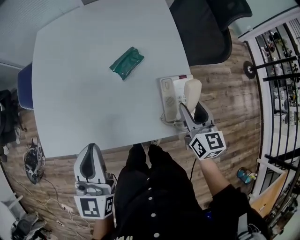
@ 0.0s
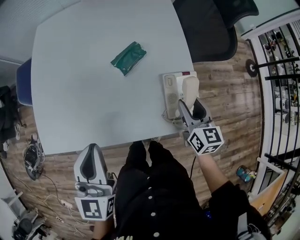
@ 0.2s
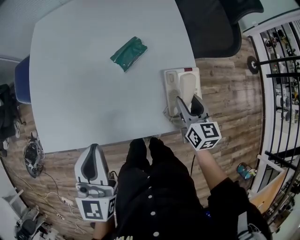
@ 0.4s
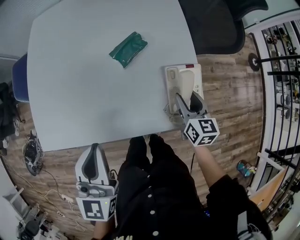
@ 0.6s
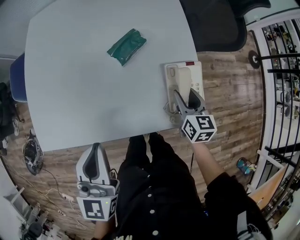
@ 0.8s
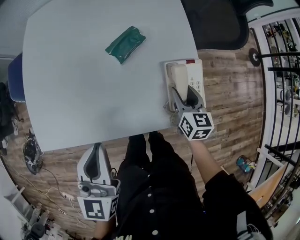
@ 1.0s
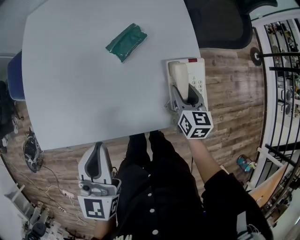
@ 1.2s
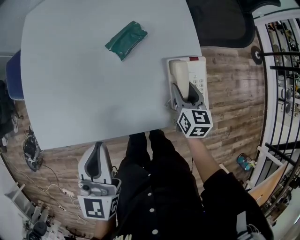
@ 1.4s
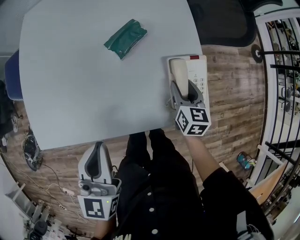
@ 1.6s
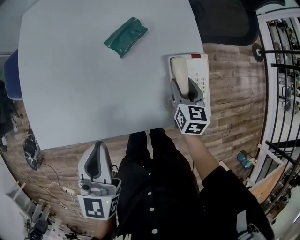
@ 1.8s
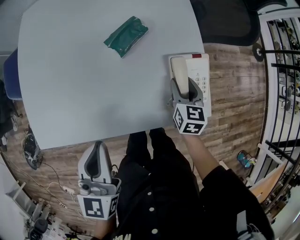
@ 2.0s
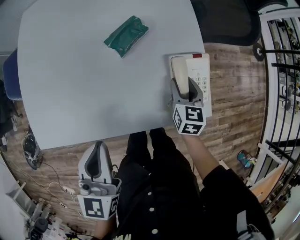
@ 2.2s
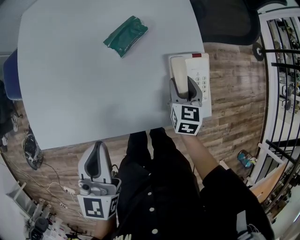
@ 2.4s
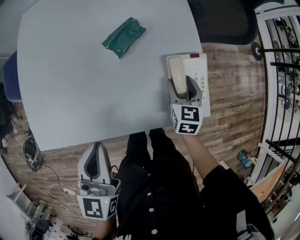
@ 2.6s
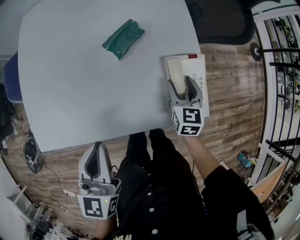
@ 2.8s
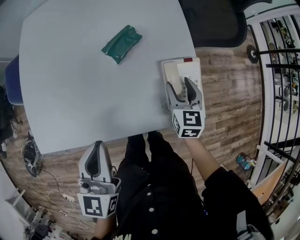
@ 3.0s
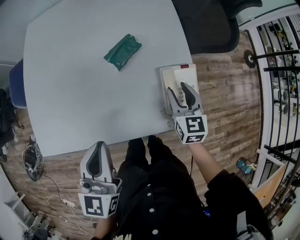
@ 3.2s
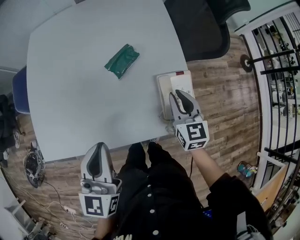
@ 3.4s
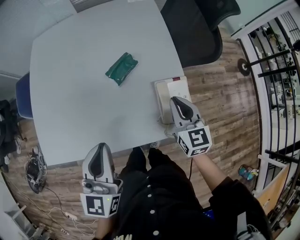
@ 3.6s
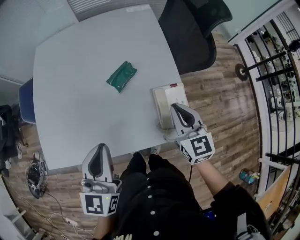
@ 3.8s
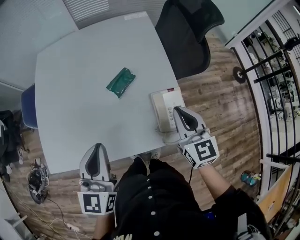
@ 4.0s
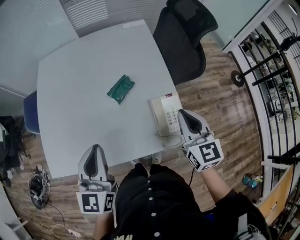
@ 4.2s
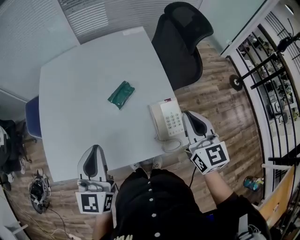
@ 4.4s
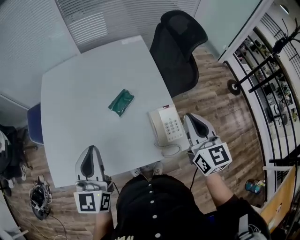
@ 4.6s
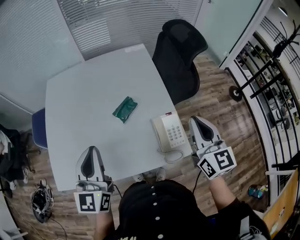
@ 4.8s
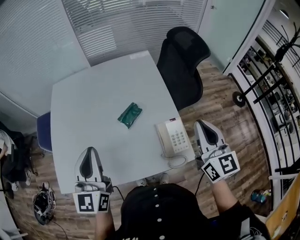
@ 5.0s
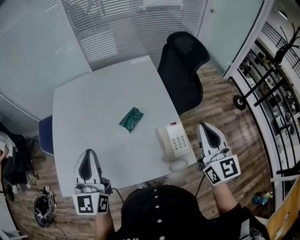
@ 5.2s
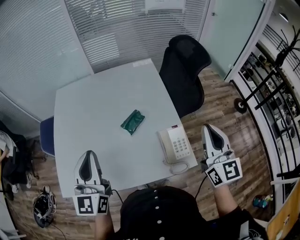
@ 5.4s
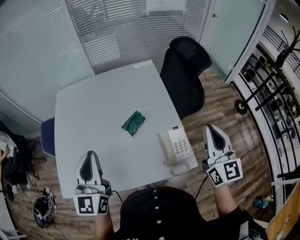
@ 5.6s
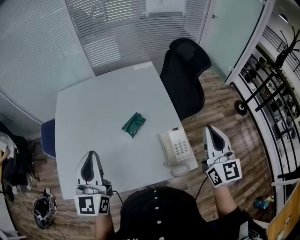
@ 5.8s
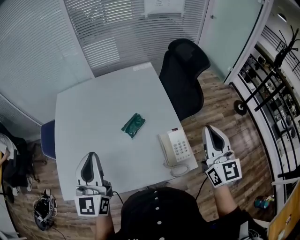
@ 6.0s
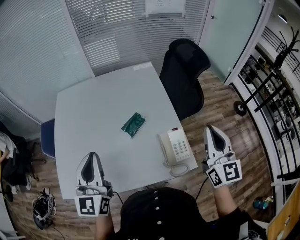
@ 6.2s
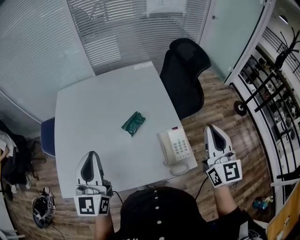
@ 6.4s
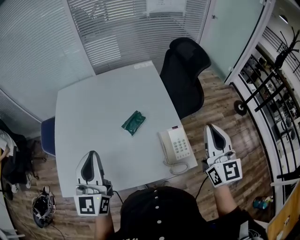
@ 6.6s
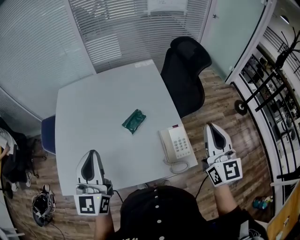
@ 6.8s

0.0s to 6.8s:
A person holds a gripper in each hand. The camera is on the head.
0.0s to 1.4s: The left gripper shifts approximately 5 cm downward. Meanwhile the right gripper travels downward by about 15 cm.
1.4s to 2.8s: The grippers move only a little.
2.8s to 4.0s: The left gripper heads upward, covering about 10 cm, while the right gripper shifts about 20 cm upward, turns by some 20 degrees, and closes its fingers.
4.0s to 5.4s: The right gripper moves upward and to the right, roughly 15 cm, and rotates roughly 20 degrees. Meanwhile the left gripper heads upward and to the left, covering roughly 10 cm.
5.4s to 6.8s: Both grippers stay about where they are.

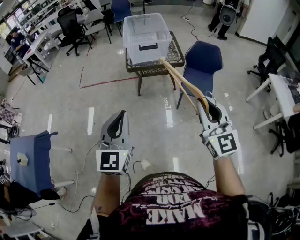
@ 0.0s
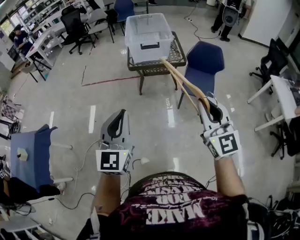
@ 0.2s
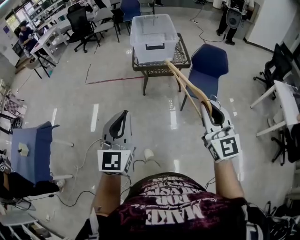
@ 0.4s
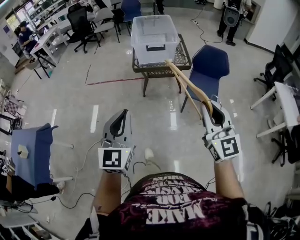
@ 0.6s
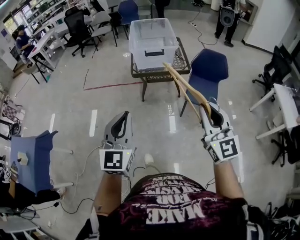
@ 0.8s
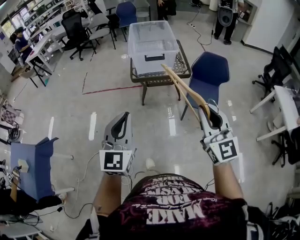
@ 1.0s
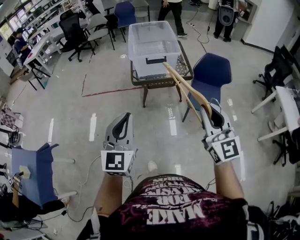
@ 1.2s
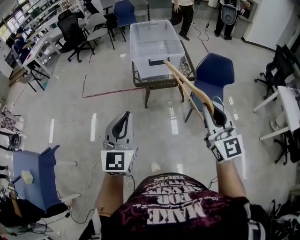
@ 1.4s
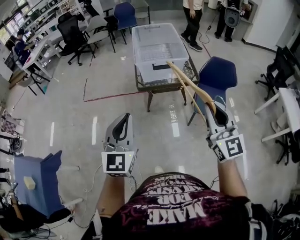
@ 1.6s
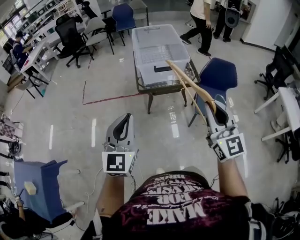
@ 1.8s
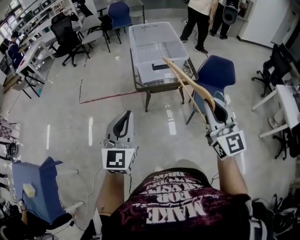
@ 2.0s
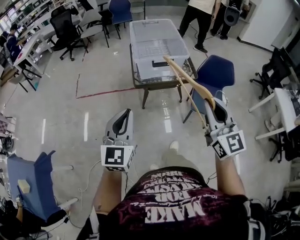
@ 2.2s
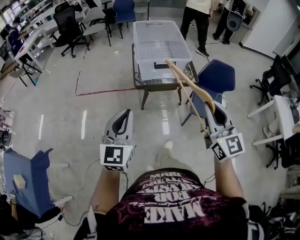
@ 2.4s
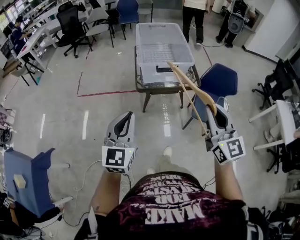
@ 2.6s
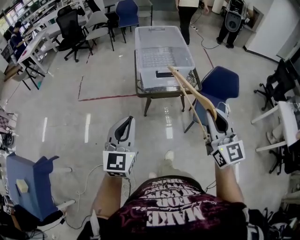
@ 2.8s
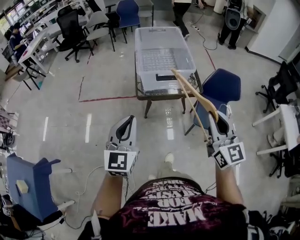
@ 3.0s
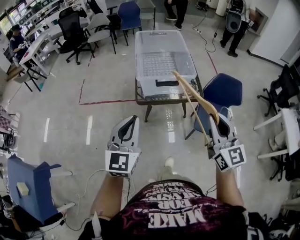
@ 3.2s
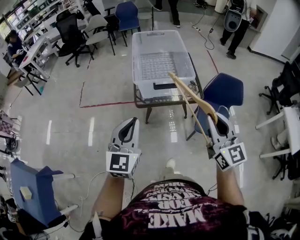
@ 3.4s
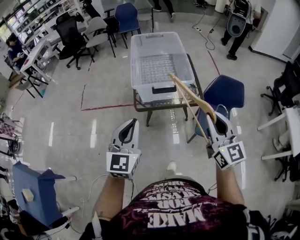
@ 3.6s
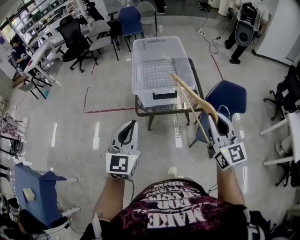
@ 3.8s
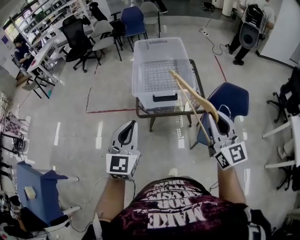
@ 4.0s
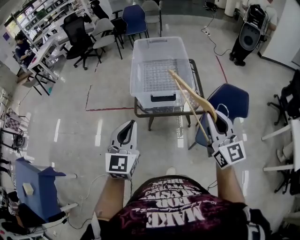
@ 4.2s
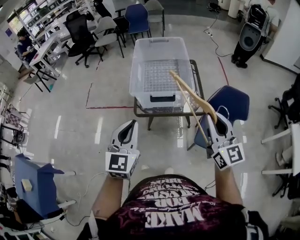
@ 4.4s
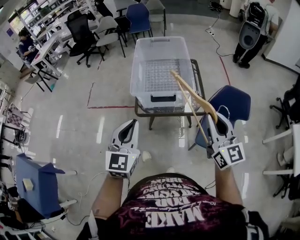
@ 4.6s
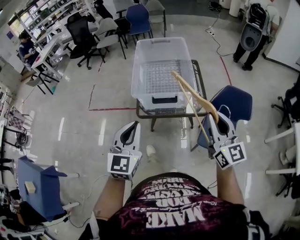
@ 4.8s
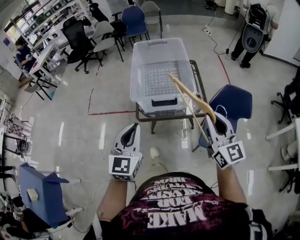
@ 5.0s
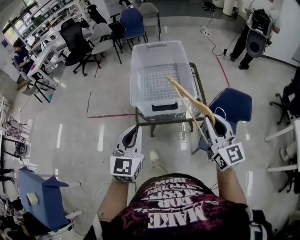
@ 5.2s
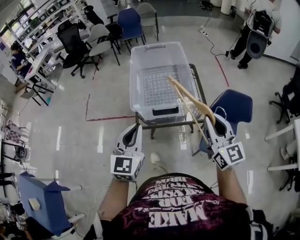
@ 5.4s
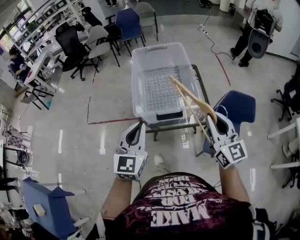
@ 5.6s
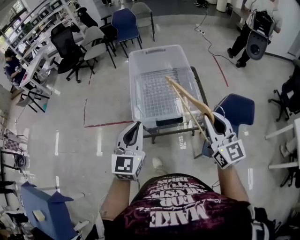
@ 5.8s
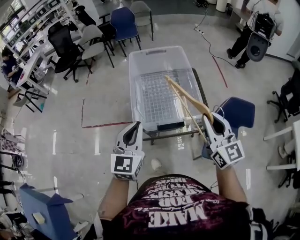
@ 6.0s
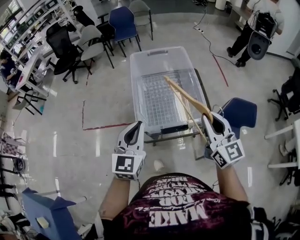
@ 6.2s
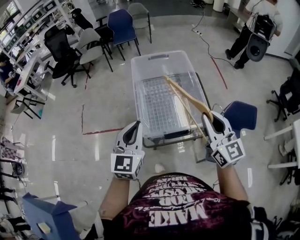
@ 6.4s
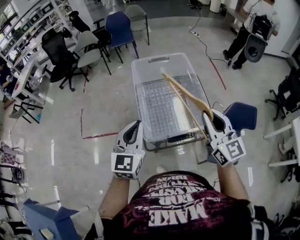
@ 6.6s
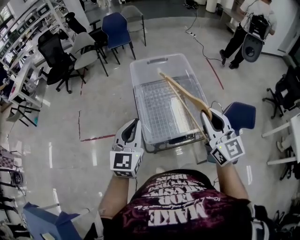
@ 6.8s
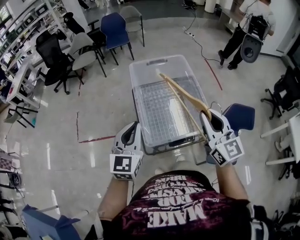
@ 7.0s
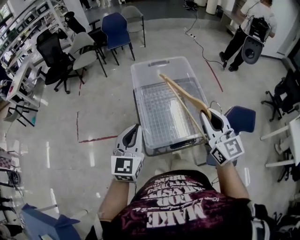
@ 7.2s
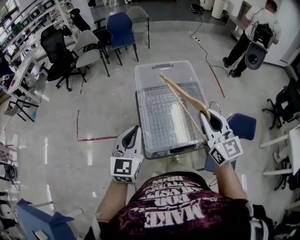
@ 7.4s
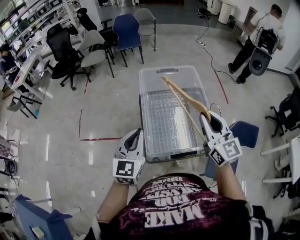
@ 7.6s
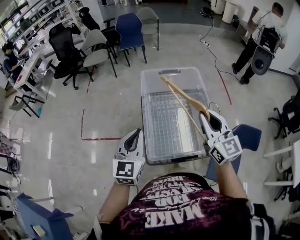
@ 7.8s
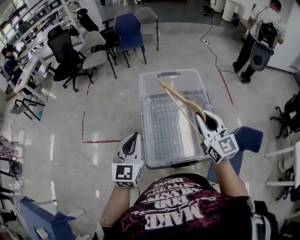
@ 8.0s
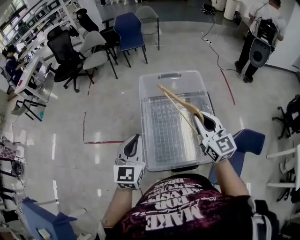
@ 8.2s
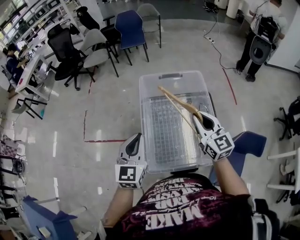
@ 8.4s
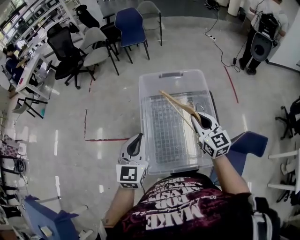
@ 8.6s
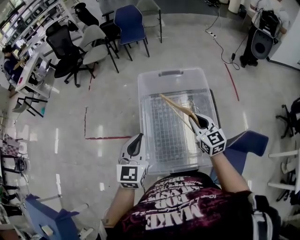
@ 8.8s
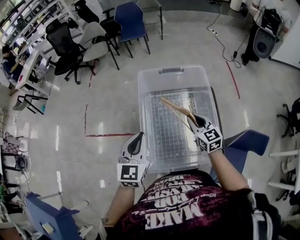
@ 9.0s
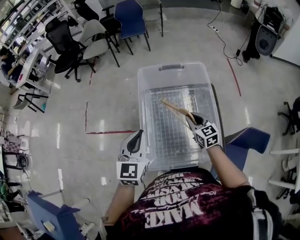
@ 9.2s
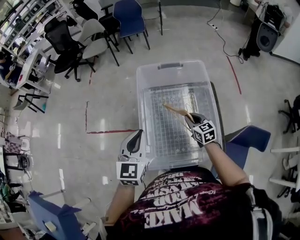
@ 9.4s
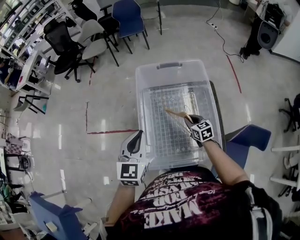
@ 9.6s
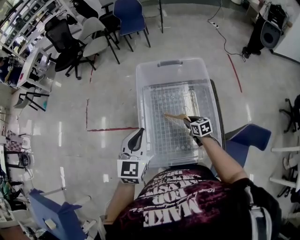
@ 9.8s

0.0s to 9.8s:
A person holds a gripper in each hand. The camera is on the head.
0.0s to 1.4s: The grippers both shift forward by some 15 cm.
1.4s to 2.8s: Both grippers move forward, about 10 cm.
2.8s to 4.2s: Both grippers travel together forward and to the right, about 20 cm.
4.2s to 5.6s: The grippers both shift forward by some 10 cm.
5.6s to 7.0s: The grippers both shift forward and to the left by about 20 cm.
7.0s to 8.4s: The left gripper heads forward, covering approximately 10 cm, while the right gripper moves forward, about 20 cm.
8.4s to 9.8s: The right gripper is displaced downward by approximately 30 cm, and angles its fingers downward, by roughly 40 degrees.

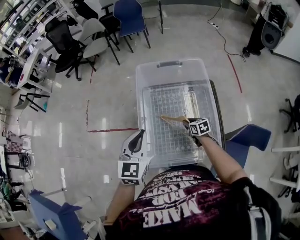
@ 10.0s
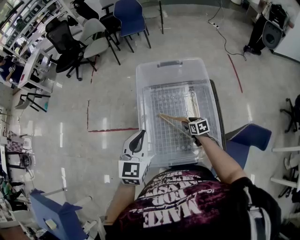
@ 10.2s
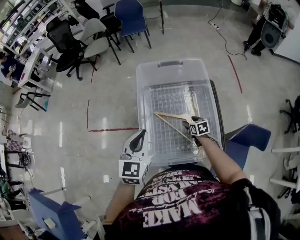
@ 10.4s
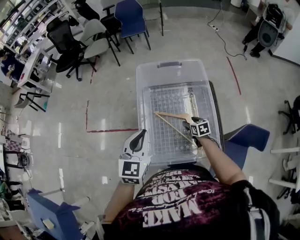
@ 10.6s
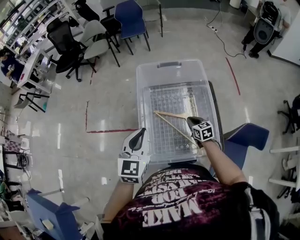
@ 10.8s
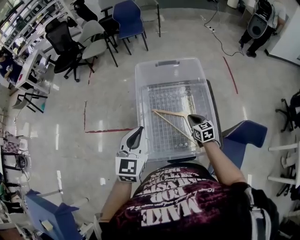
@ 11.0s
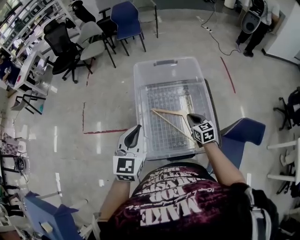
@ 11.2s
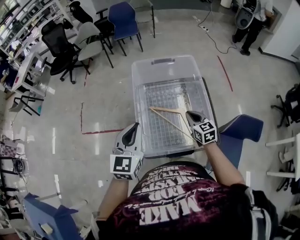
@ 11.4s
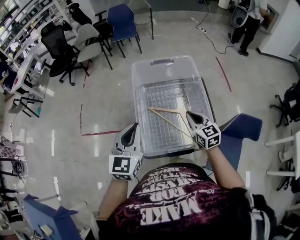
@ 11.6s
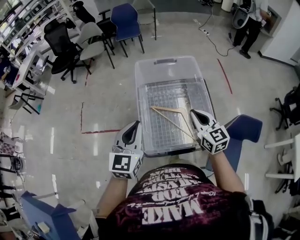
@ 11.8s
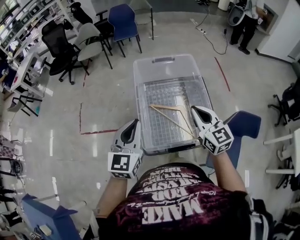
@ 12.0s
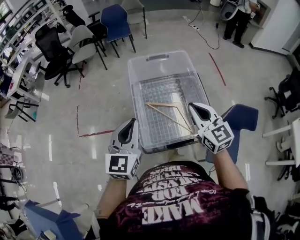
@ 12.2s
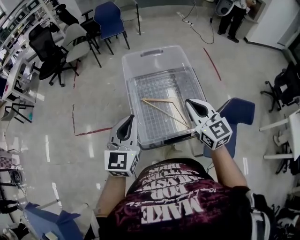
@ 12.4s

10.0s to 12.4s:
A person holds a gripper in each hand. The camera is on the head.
10.0s to 11.2s: The right gripper is displaced upward by some 10 cm, turns by some 20 degrees, and opens, then closes again.
11.2s to 12.4s: The right gripper goes approximately 25 cm upward and backward, and turns by approximately 20 degrees, while the left gripper moves about 5 cm.

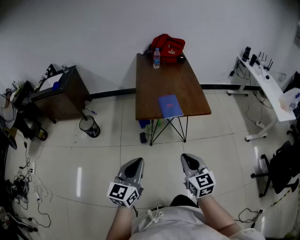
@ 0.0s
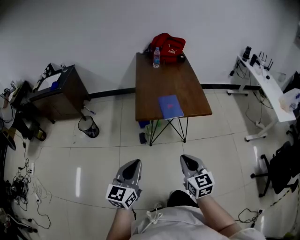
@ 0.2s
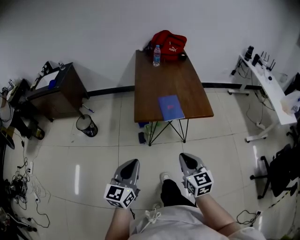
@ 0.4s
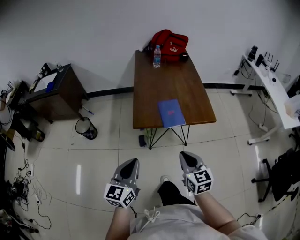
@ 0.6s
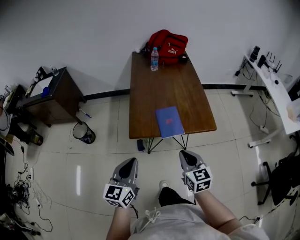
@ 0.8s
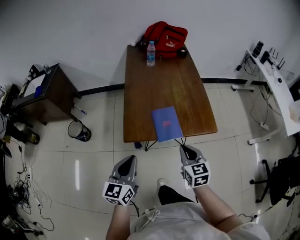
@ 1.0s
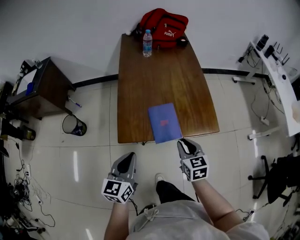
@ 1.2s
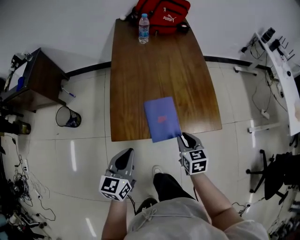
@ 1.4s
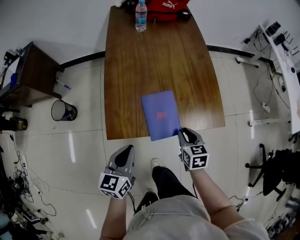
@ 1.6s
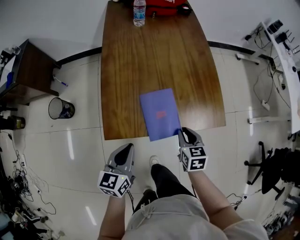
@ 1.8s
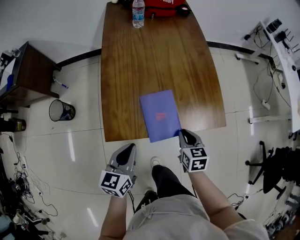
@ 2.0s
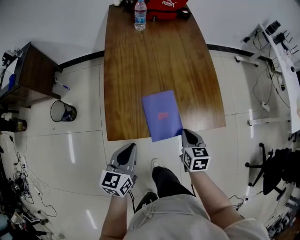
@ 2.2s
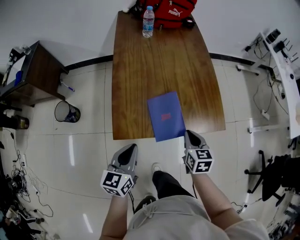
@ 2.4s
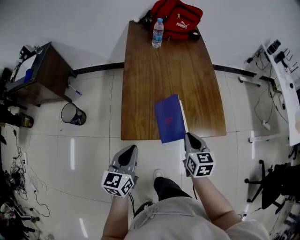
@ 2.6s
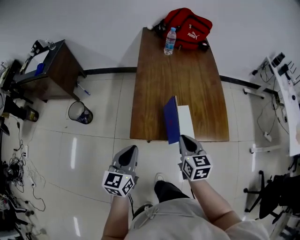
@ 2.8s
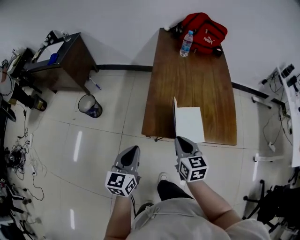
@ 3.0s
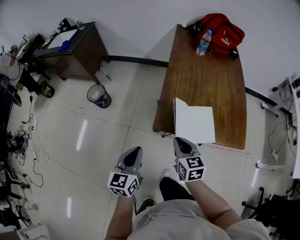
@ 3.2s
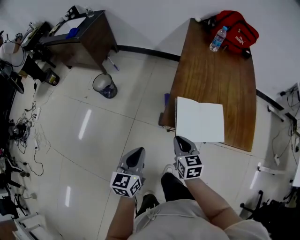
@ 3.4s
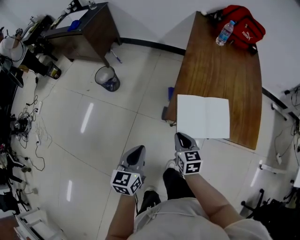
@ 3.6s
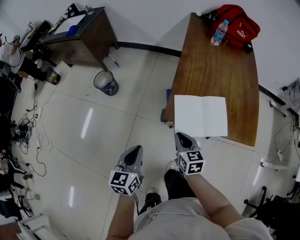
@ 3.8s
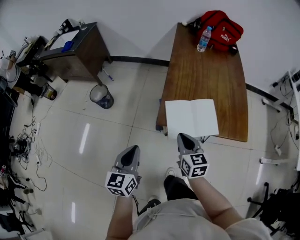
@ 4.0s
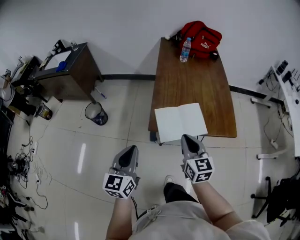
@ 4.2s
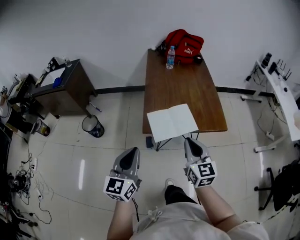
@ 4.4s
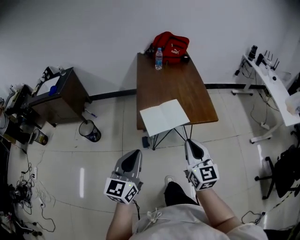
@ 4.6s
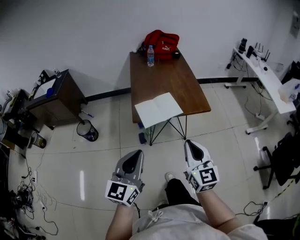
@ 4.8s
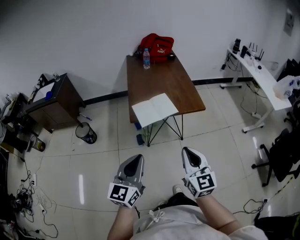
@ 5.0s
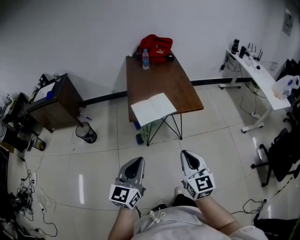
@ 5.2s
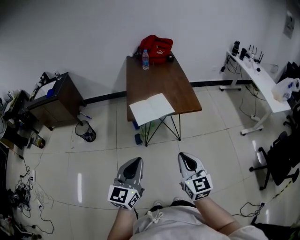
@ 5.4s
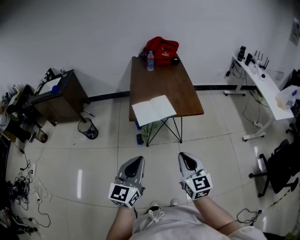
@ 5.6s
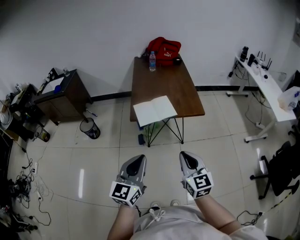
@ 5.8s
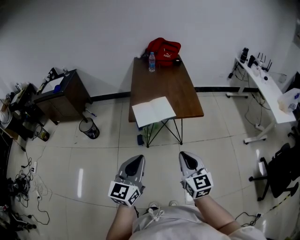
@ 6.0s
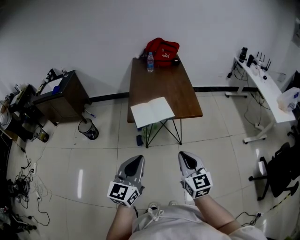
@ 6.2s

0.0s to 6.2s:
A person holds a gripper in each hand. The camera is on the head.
0.0s to 1.6s: Both grippers travel together forward and downward, roughly 40 cm. The right gripper turns by approximately 30 degrees, while the left gripper changes its angle by roughly 20 degrees.
1.6s to 3.2s: The right gripper travels to the left and upward by roughly 25 cm, and turns by approximately 20 degrees; the left gripper shifts about 15 cm to the left and backward, and swivels approximately 20 degrees.
3.2s to 4.6s: Both grippers move backward and upward, some 25 cm. The right gripper rotates roughly 30 degrees. The left gripper changes its angle by about 30 degrees.
4.6s to 6.2s: Both grippers move backward and to the right, roughly 15 cm.
